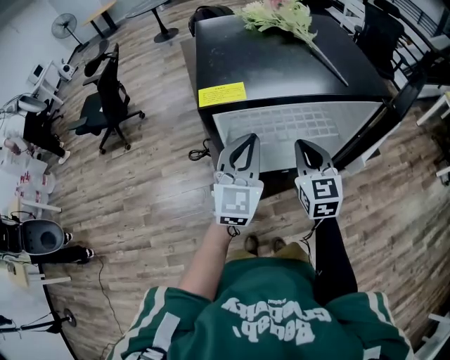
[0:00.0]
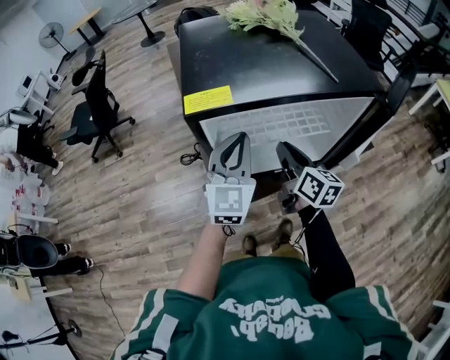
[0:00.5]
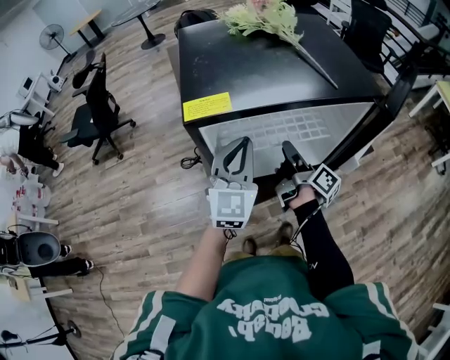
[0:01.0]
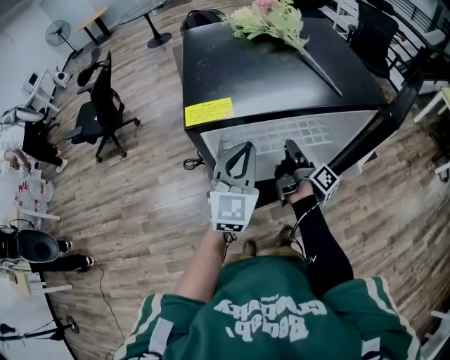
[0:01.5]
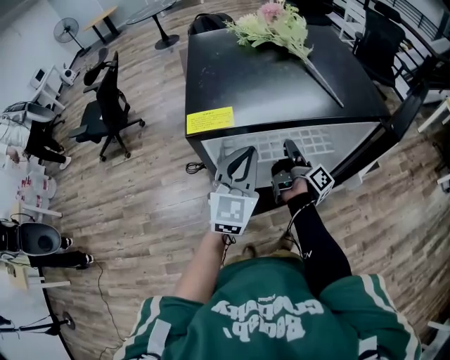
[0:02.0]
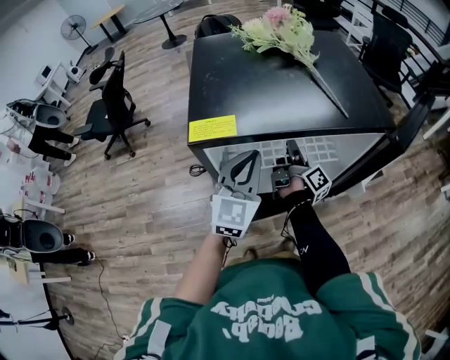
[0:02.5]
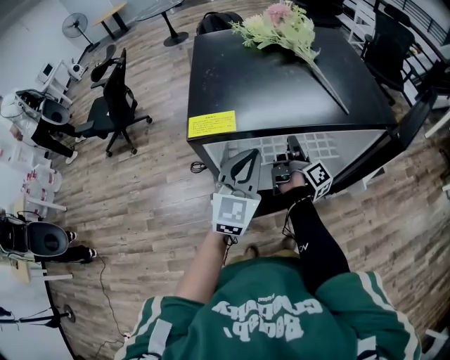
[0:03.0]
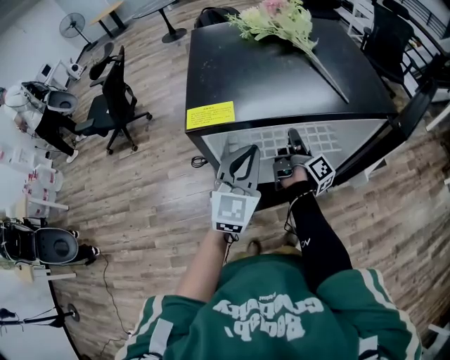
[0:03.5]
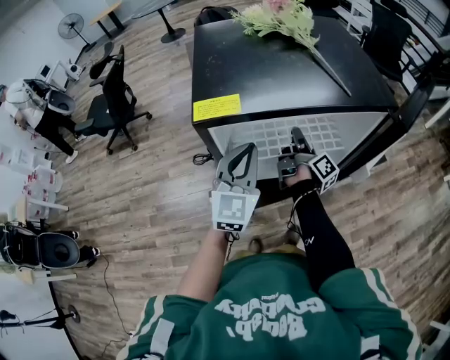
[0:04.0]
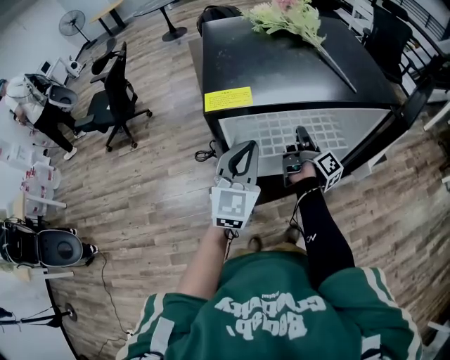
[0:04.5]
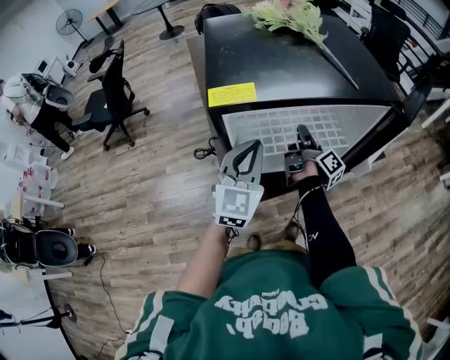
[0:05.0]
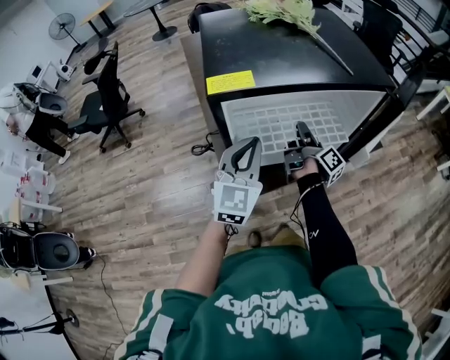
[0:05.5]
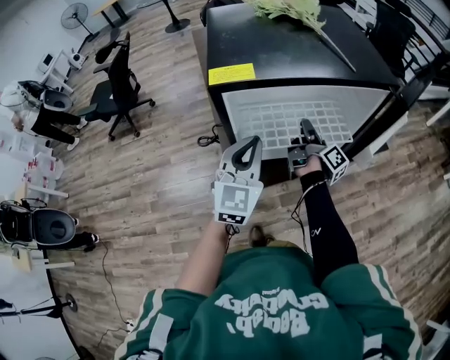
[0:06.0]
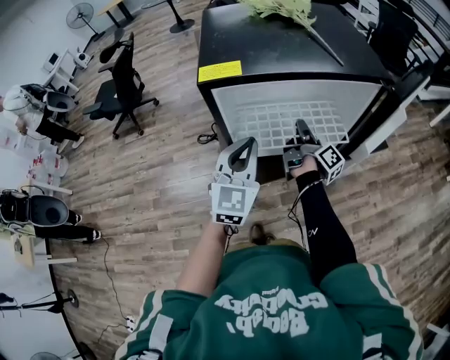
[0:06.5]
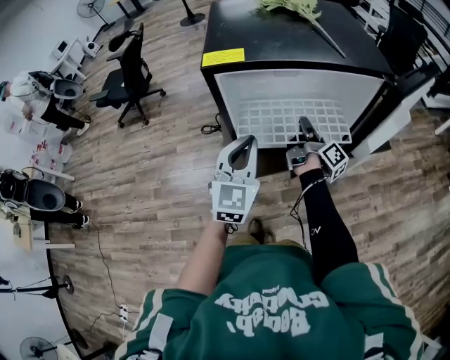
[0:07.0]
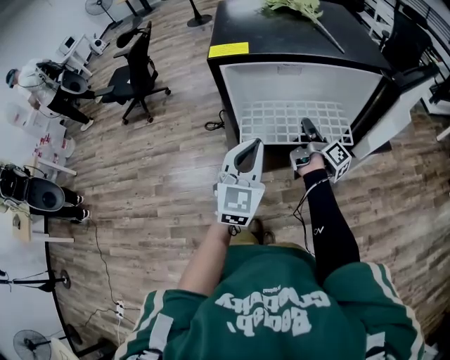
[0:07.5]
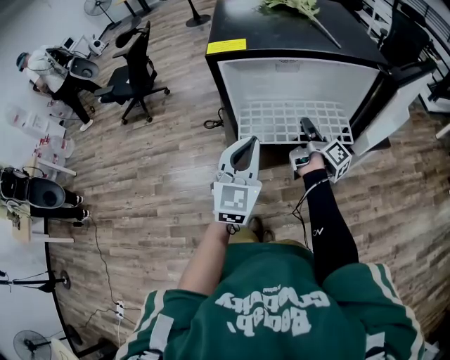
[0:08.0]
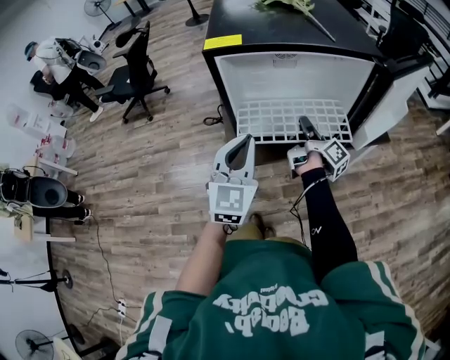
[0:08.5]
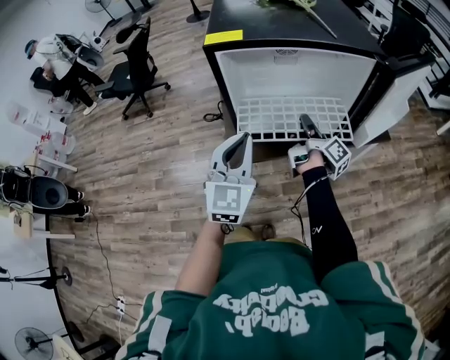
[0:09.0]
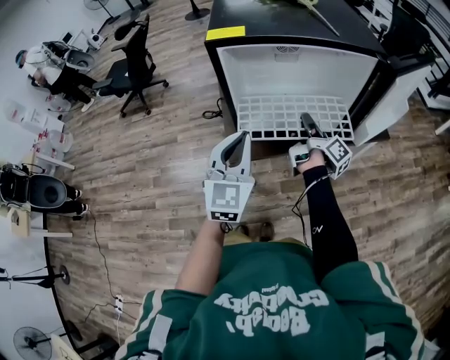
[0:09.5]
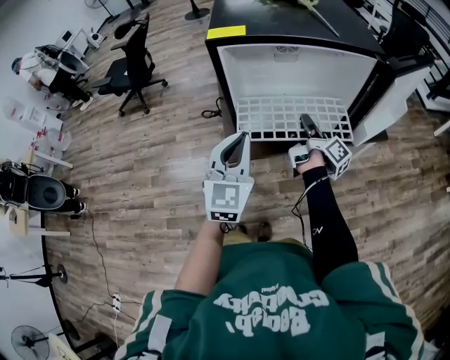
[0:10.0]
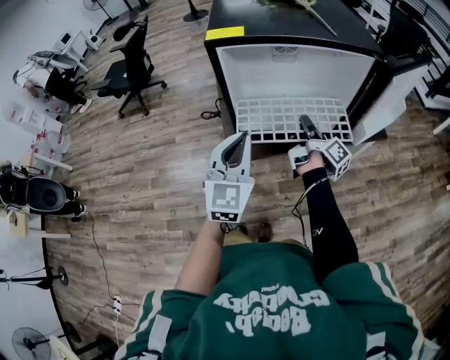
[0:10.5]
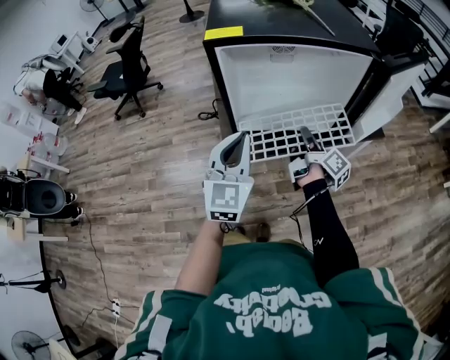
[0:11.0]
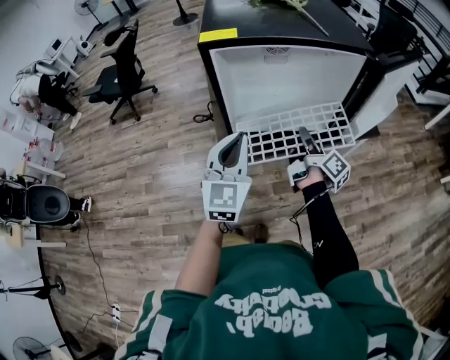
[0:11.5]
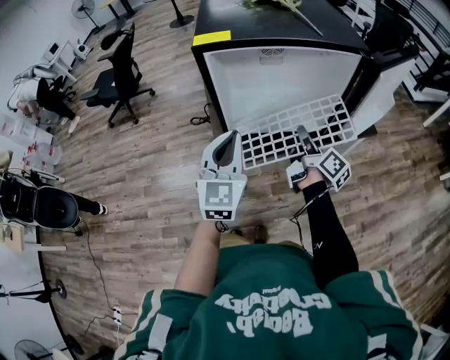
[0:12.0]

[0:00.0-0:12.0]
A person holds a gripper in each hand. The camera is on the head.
0:00.0 to 0:02.0: The right gripper goes some 15 cm forward and downward, and rotates around the line of its fingers by some 100 degrees, clockwise from behind.
0:02.0 to 0:04.0: The grippers make only small movements.
0:04.0 to 0:06.0: The grippers stay close to where they were, moving slightly.
0:06.0 to 0:08.0: Both grippers travel together backward, about 5 cm.
0:08.0 to 0:10.0: The grippers stay close to where they were, moving slightly.
0:10.0 to 0:12.0: The right gripper ends up roughly 5 cm from where it was, and swivels about 20 degrees.

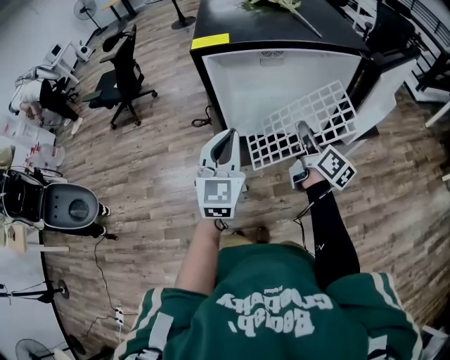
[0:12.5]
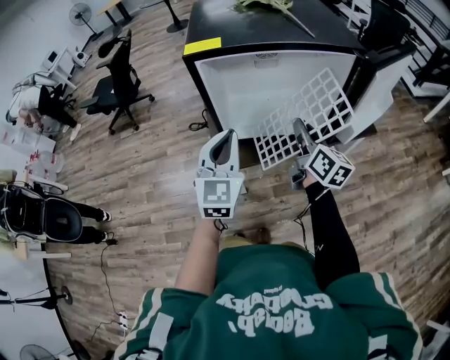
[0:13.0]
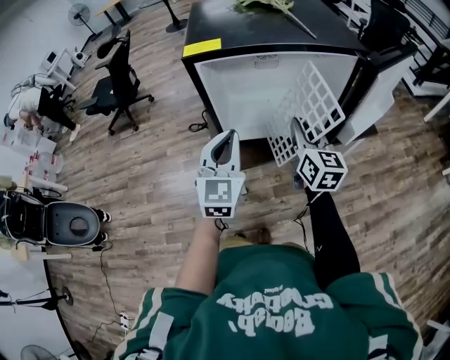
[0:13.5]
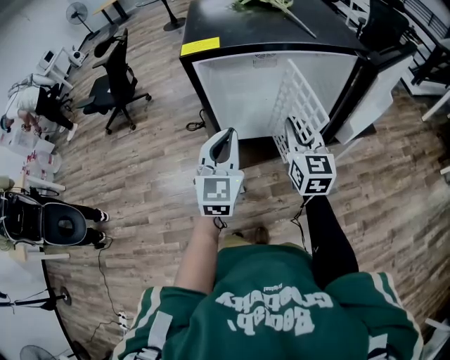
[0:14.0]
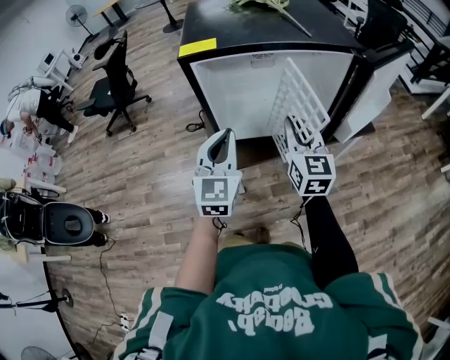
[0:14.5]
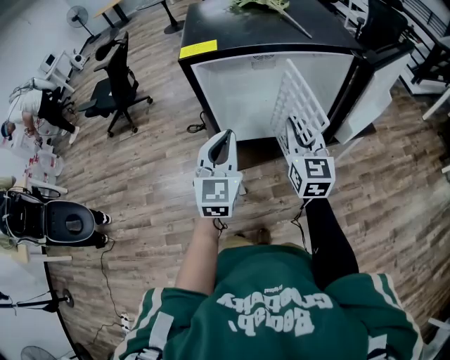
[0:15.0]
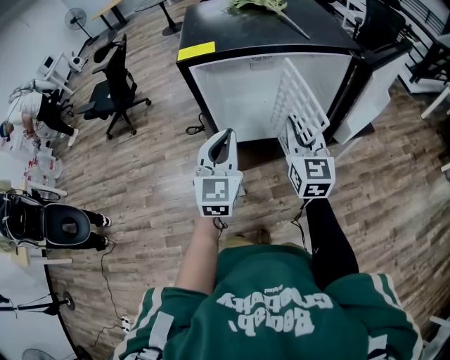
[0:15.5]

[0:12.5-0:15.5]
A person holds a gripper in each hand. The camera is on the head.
0:12.5 to 0:14.0: The right gripper rotates around the line of its fingers by some 50 degrees, counterclockwise from behind.
0:14.0 to 0:15.5: The grippers make only small movements.

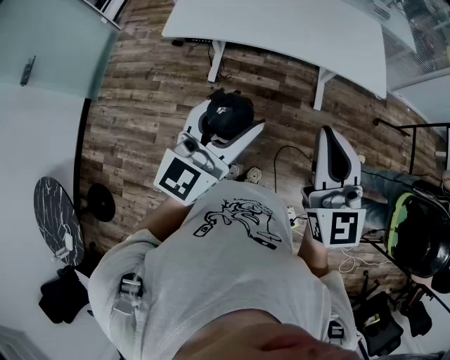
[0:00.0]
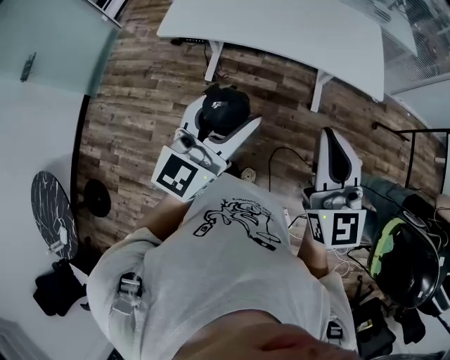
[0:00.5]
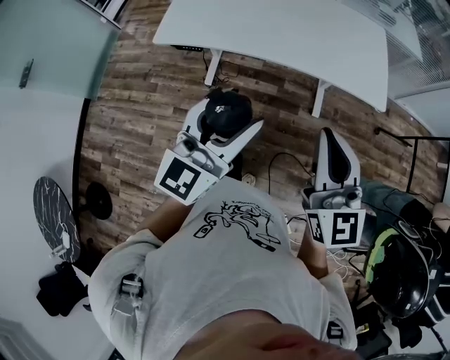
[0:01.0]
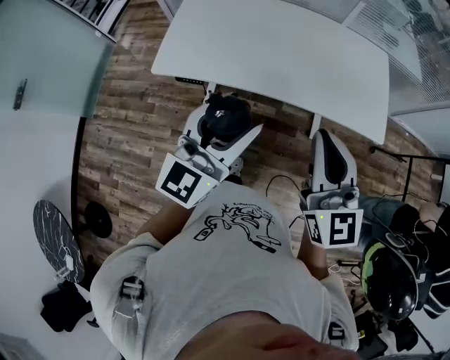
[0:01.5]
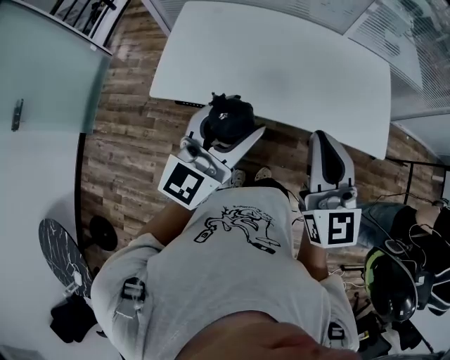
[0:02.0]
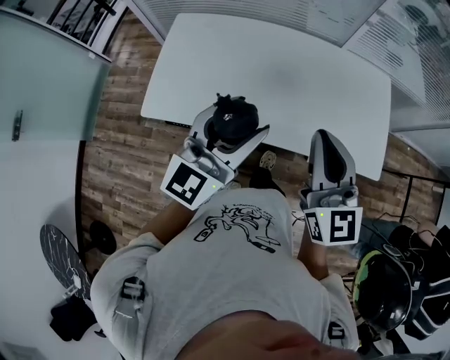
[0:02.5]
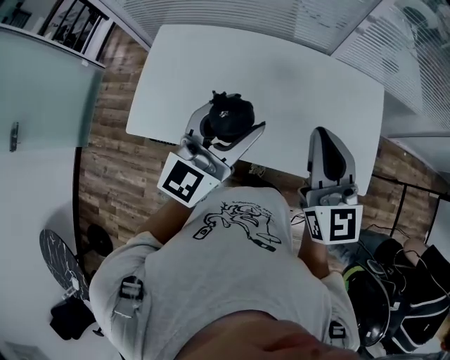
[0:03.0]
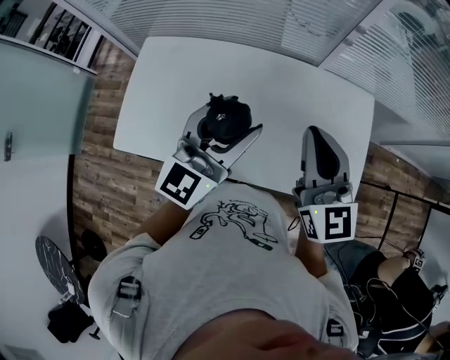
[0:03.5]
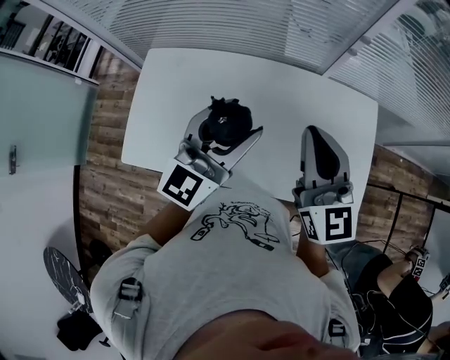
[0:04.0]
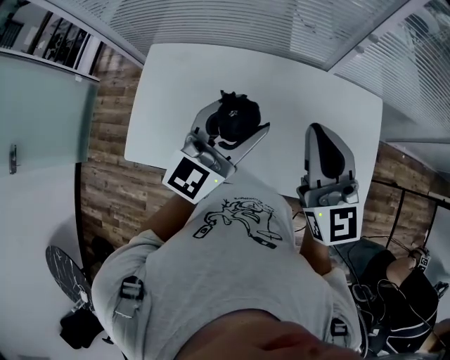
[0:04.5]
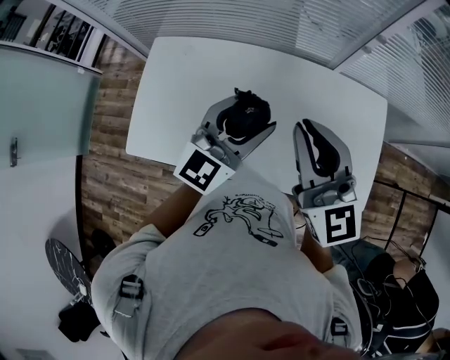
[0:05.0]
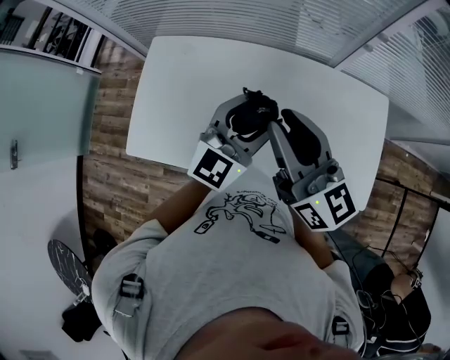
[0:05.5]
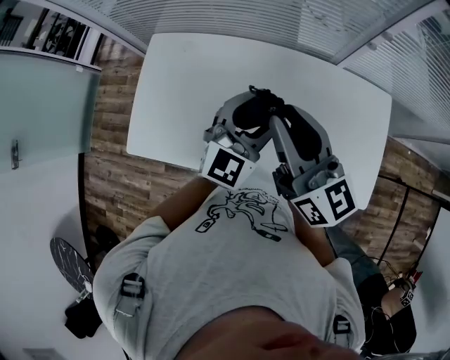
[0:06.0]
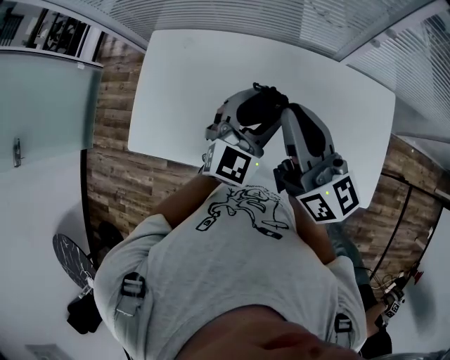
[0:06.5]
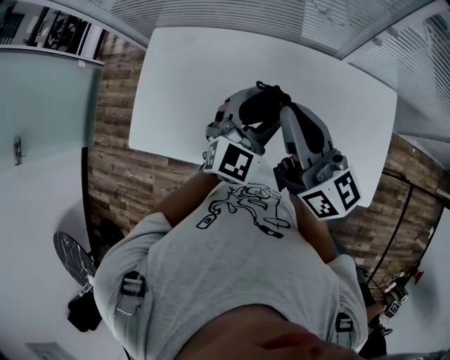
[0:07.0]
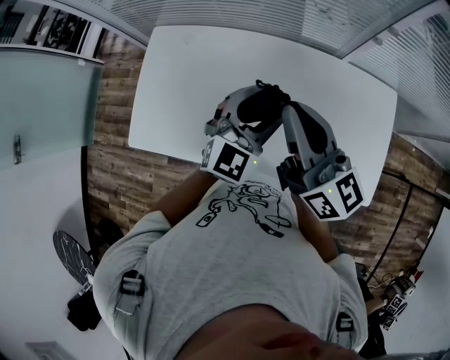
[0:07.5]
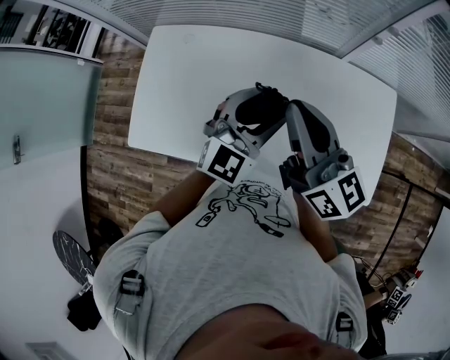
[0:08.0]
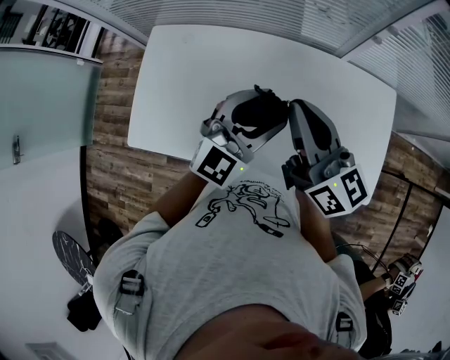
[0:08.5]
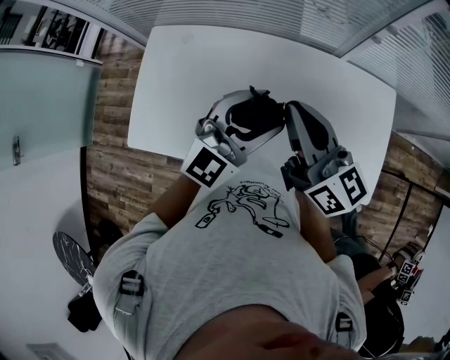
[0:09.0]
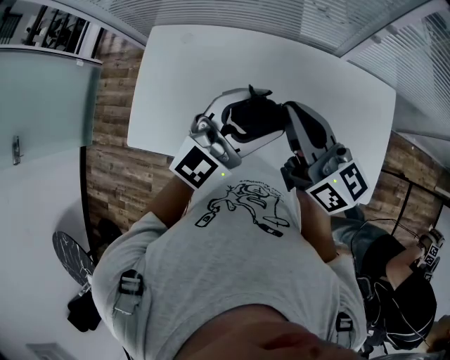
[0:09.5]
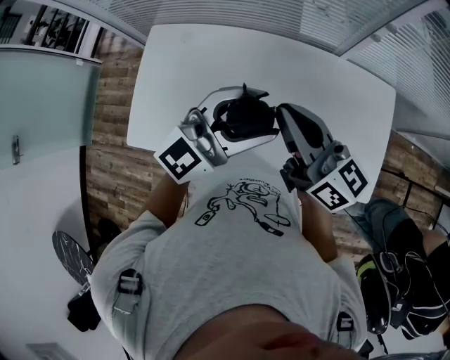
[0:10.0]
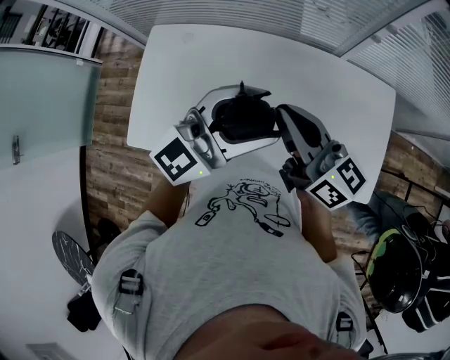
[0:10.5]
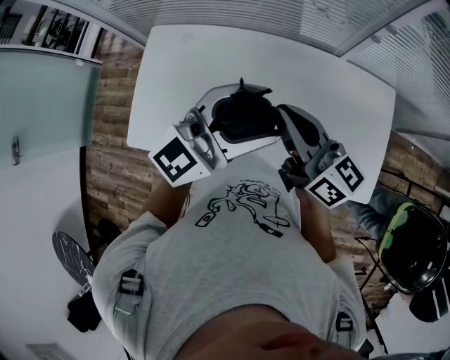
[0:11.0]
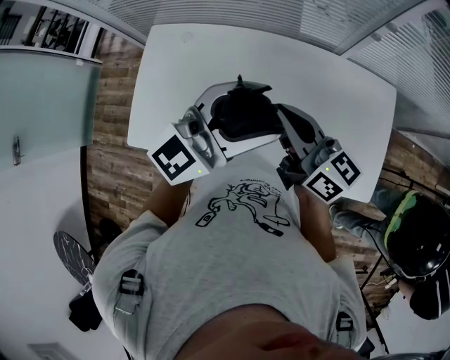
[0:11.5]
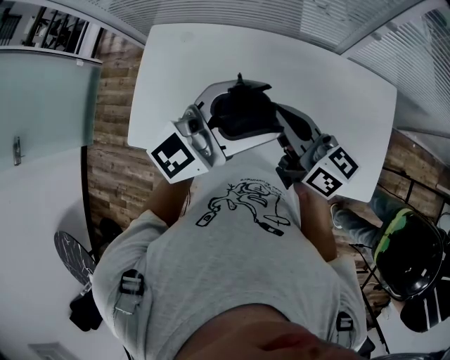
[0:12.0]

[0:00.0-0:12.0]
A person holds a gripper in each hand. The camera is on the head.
0:00.0 to 0:02.0: The two grippers go about 35 cm forward.
0:02.0 to 0:04.0: The two grippers go roughly 30 cm forward.
0:04.0 to 0:06.0: The right gripper is displaced to the left by roughly 10 cm, swivels about 30 degrees, and opens up. The left gripper moves downward, approximately 5 cm.
0:06.0 to 0:08.0: The right gripper closes its fingers.
0:08.0 to 0:10.0: The left gripper moves upward, roughly 5 cm, and rotates about 30 degrees.
0:10.0 to 0:12.0: The grippers stay close to where they were, moving slightly.
